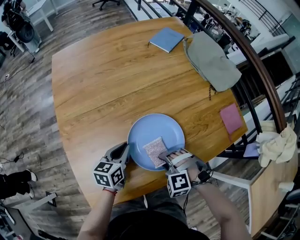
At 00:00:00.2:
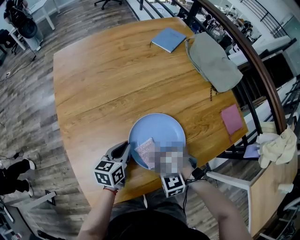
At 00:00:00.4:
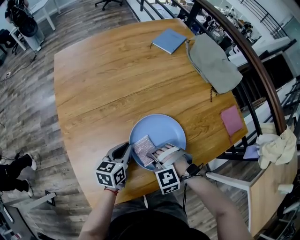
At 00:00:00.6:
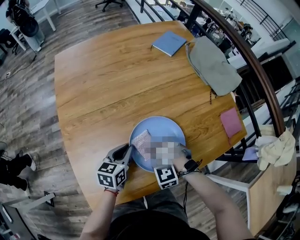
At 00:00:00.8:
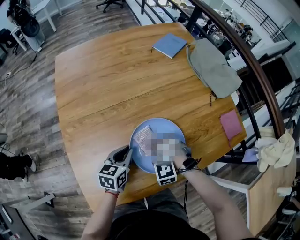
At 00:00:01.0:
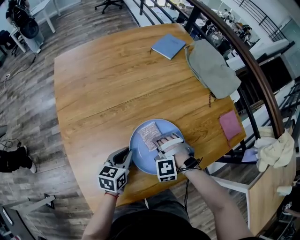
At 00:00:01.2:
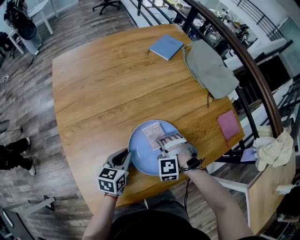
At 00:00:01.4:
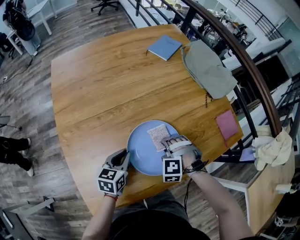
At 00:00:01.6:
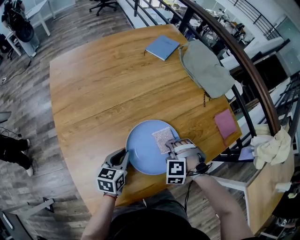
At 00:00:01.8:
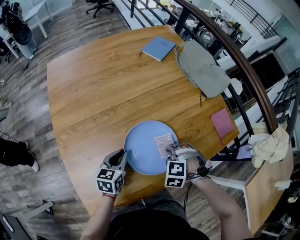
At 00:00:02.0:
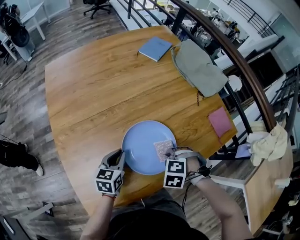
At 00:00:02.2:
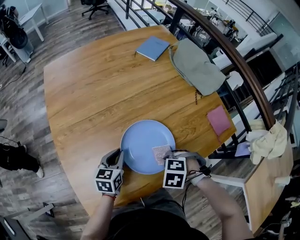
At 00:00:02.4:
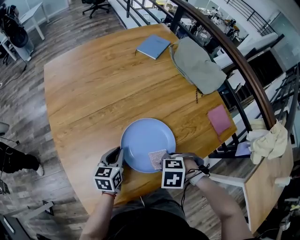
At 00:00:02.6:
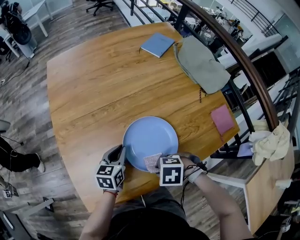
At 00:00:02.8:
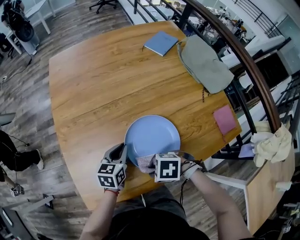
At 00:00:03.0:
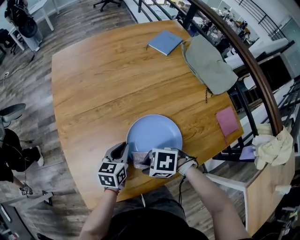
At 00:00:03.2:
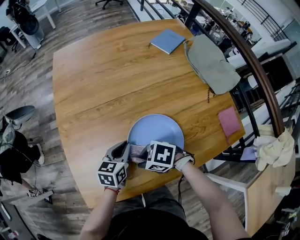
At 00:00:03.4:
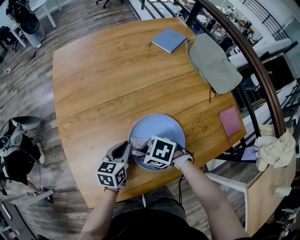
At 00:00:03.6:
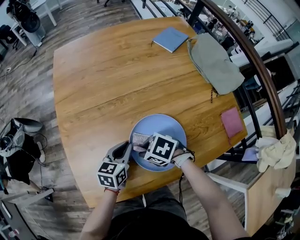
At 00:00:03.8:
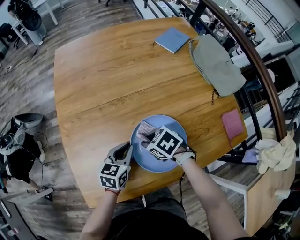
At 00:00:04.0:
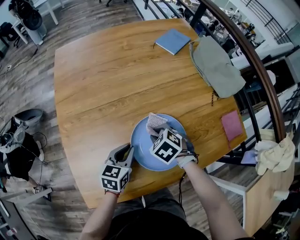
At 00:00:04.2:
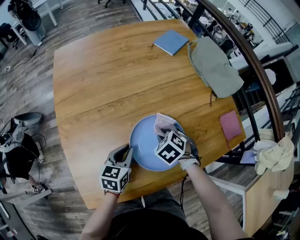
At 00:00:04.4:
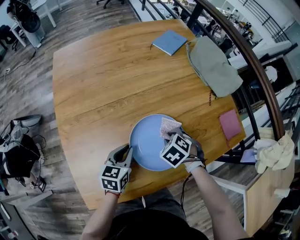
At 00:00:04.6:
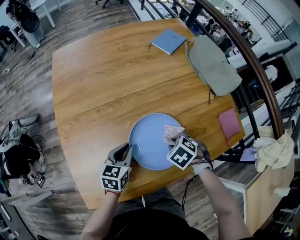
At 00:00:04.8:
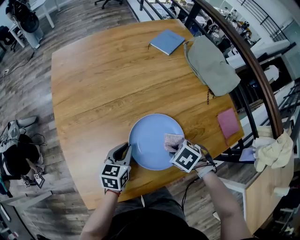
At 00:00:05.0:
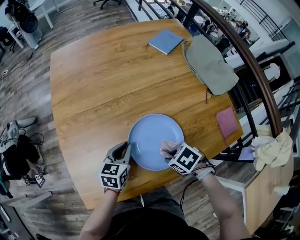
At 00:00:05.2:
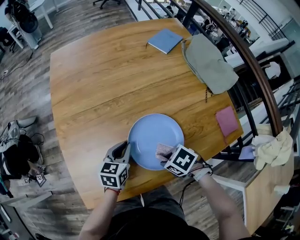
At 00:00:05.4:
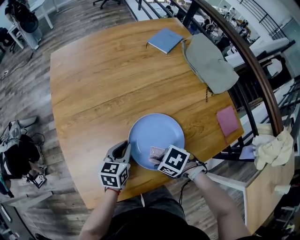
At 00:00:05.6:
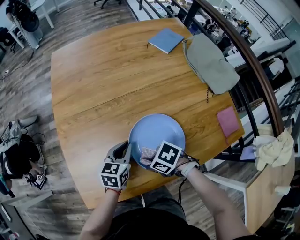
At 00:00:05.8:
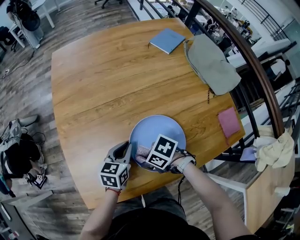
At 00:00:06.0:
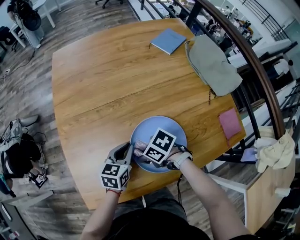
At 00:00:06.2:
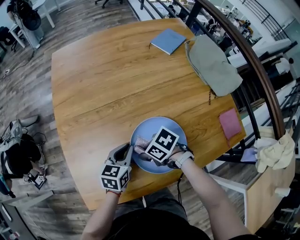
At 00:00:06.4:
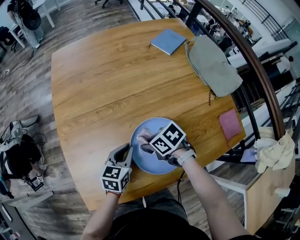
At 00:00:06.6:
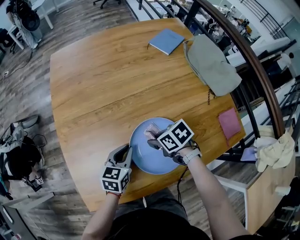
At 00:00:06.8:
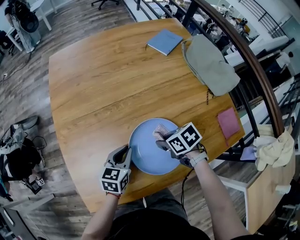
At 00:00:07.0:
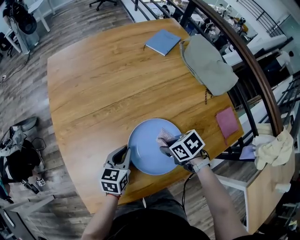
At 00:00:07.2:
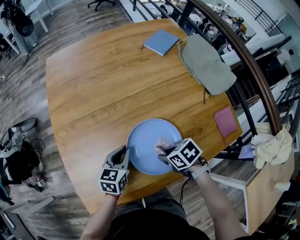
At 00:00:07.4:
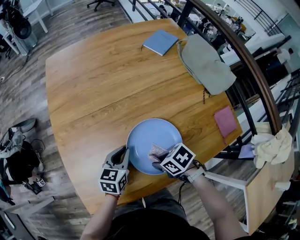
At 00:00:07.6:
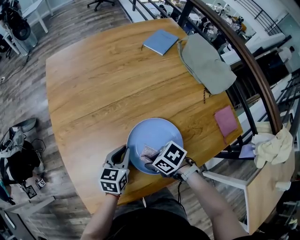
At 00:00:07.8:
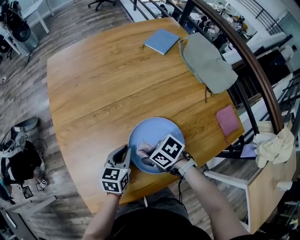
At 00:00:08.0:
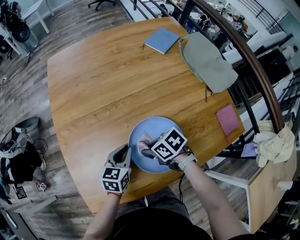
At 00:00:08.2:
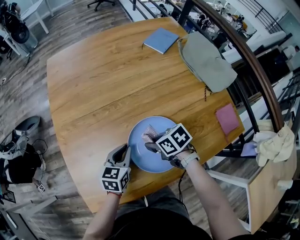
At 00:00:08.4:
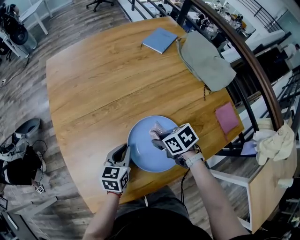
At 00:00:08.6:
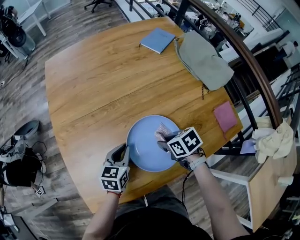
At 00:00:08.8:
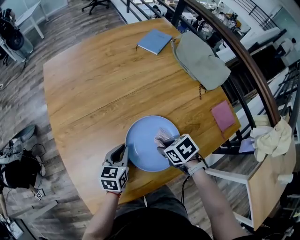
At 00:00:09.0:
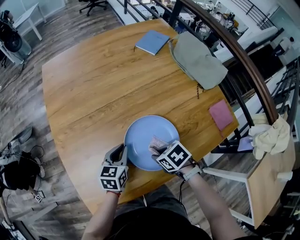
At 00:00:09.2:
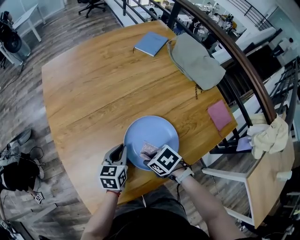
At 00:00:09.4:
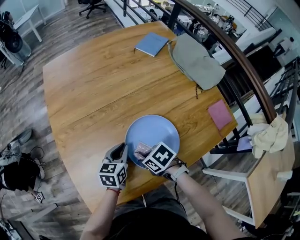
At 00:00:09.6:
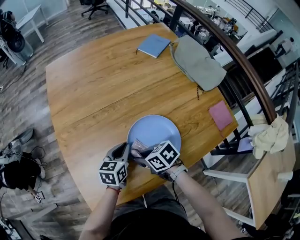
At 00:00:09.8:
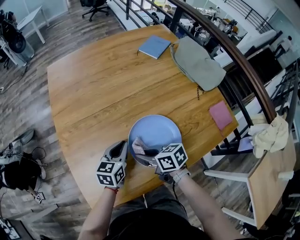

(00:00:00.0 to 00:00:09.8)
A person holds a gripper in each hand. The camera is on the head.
00:00:00.0 - 00:00:01.4: The right gripper travels forward by roughly 10 cm.
00:00:01.4 - 00:00:02.8: The right gripper changes place by about 15 cm, and rotates about 60 degrees.
00:00:02.8 - 00:00:04.2: The right gripper moves some 20 cm, and turns by roughly 50 degrees.
00:00:04.2 - 00:00:05.6: The right gripper shifts by some 15 cm, and rotates some 40 degrees.
00:00:05.6 - 00:00:07.0: The right gripper shifts by approximately 10 cm, and rotates some 30 degrees.
00:00:08.4 - 00:00:09.8: The right gripper moves to the left, approximately 10 cm, and swivels about 20 degrees.

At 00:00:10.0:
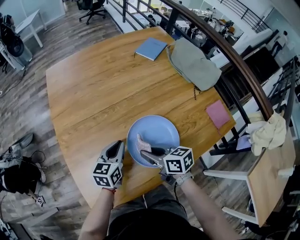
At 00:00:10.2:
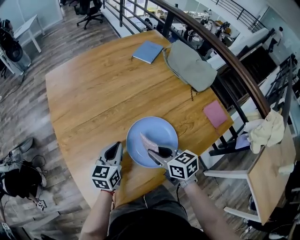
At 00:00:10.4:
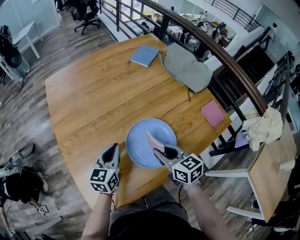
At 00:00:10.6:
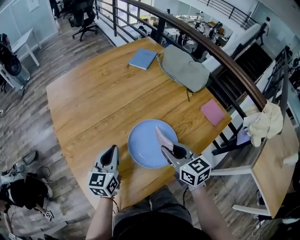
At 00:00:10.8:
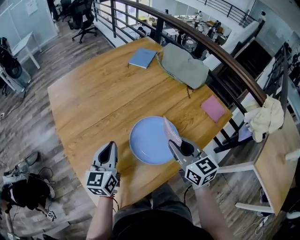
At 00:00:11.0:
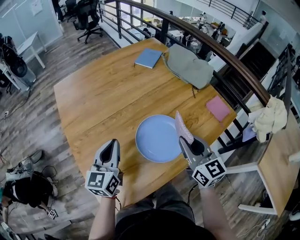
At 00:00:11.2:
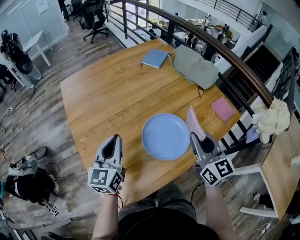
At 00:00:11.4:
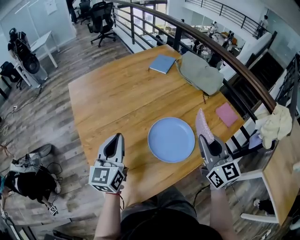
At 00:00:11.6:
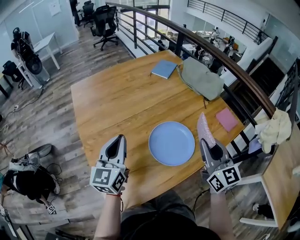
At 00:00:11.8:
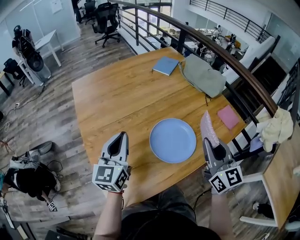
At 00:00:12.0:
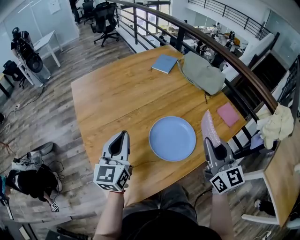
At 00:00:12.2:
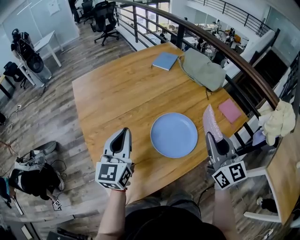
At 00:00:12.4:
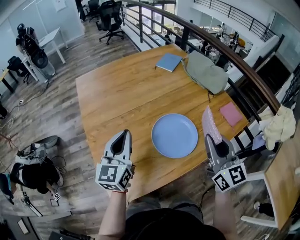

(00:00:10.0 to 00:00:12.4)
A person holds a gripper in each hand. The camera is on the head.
00:00:10.0 - 00:00:11.2: The left gripper travels upward and to the left by approximately 15 cm, and changes its angle by roughly 20 degrees; the right gripper goes roughly 20 cm upward and to the right, and turns by about 60 degrees.
00:00:11.2 - 00:00:12.4: The right gripper shifts by some 5 cm.

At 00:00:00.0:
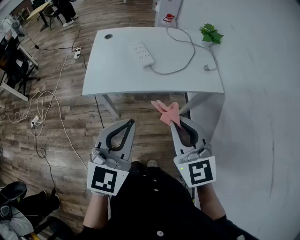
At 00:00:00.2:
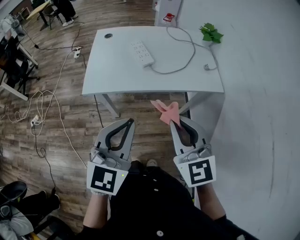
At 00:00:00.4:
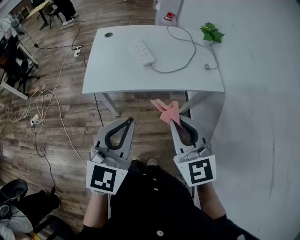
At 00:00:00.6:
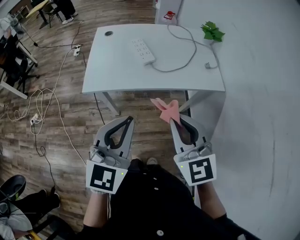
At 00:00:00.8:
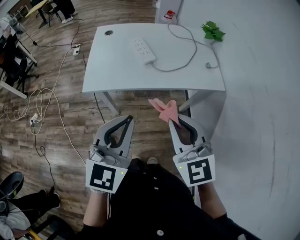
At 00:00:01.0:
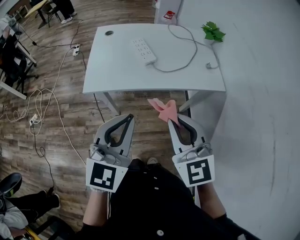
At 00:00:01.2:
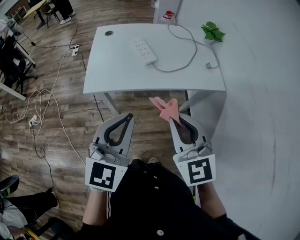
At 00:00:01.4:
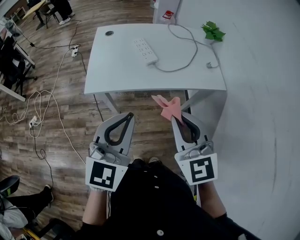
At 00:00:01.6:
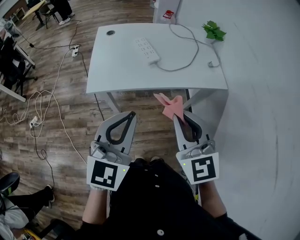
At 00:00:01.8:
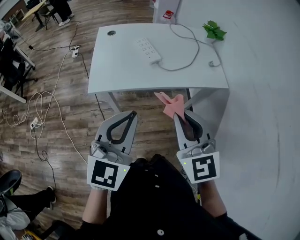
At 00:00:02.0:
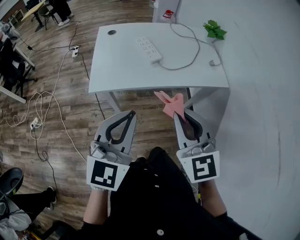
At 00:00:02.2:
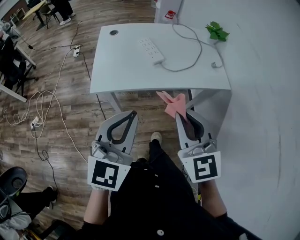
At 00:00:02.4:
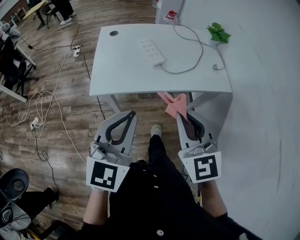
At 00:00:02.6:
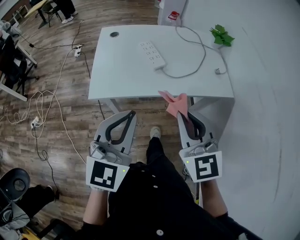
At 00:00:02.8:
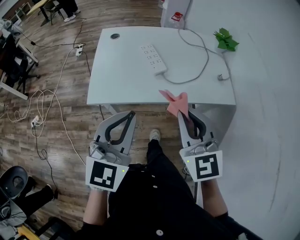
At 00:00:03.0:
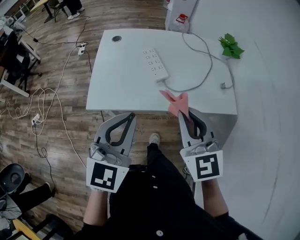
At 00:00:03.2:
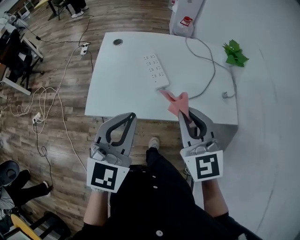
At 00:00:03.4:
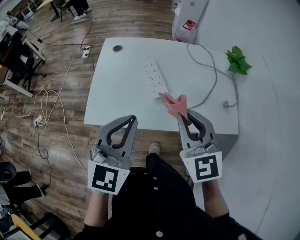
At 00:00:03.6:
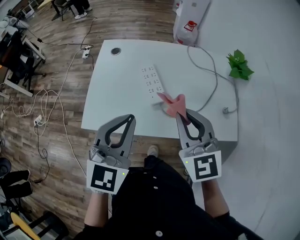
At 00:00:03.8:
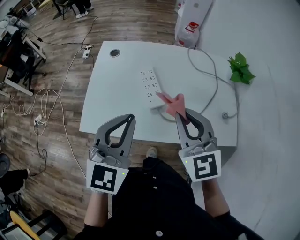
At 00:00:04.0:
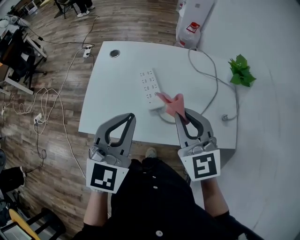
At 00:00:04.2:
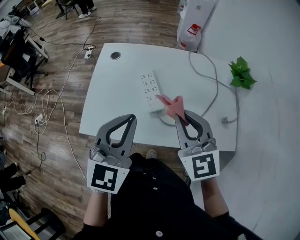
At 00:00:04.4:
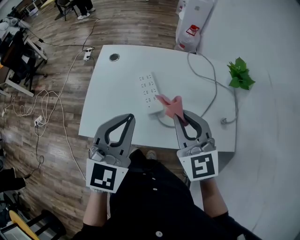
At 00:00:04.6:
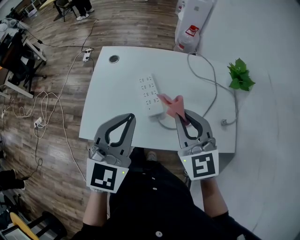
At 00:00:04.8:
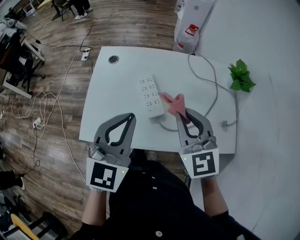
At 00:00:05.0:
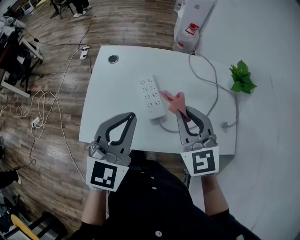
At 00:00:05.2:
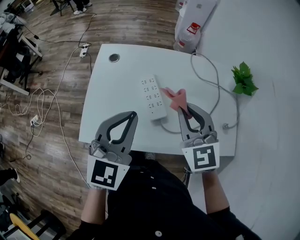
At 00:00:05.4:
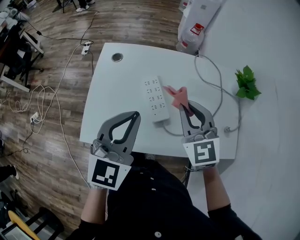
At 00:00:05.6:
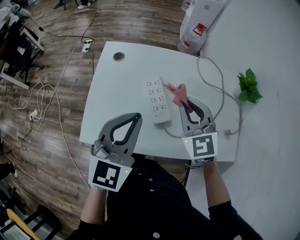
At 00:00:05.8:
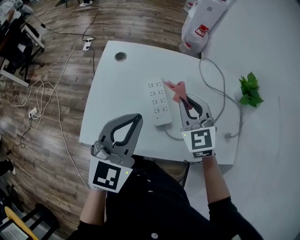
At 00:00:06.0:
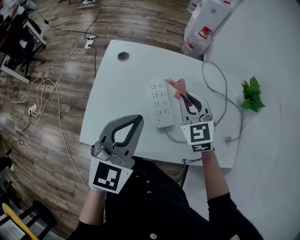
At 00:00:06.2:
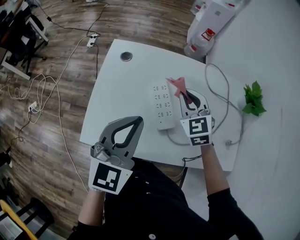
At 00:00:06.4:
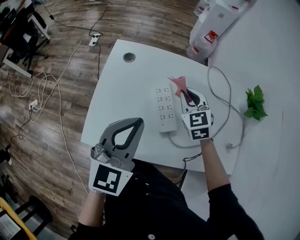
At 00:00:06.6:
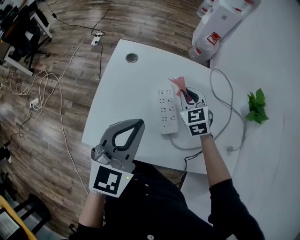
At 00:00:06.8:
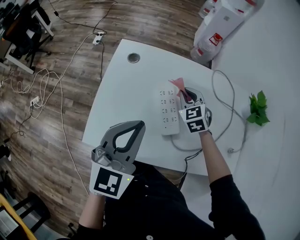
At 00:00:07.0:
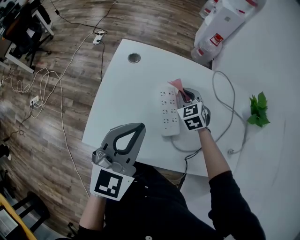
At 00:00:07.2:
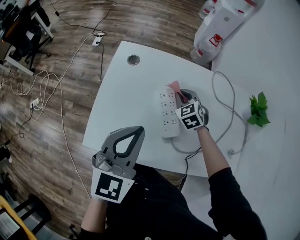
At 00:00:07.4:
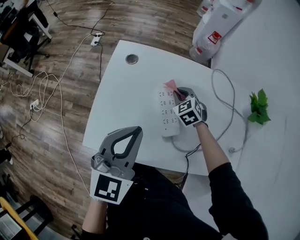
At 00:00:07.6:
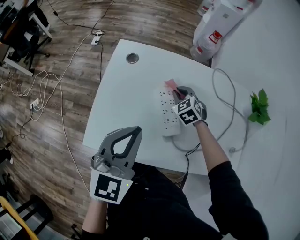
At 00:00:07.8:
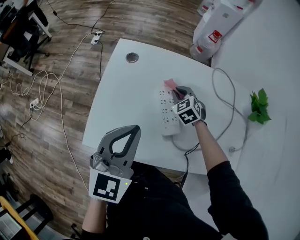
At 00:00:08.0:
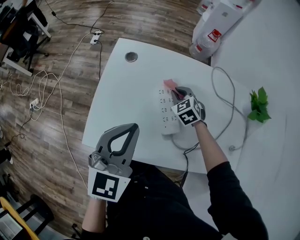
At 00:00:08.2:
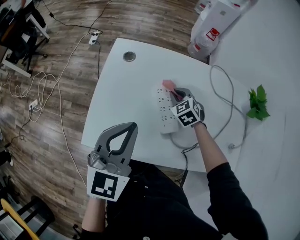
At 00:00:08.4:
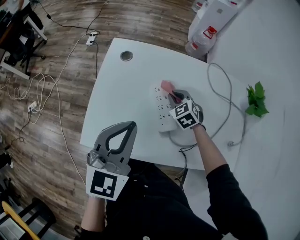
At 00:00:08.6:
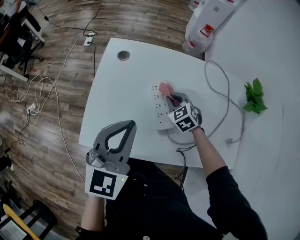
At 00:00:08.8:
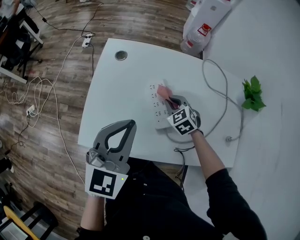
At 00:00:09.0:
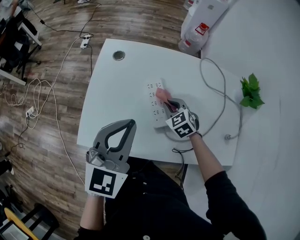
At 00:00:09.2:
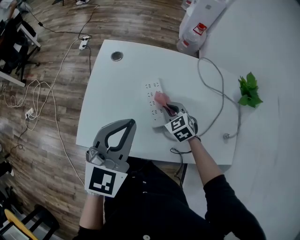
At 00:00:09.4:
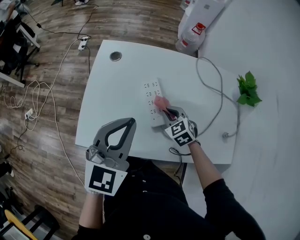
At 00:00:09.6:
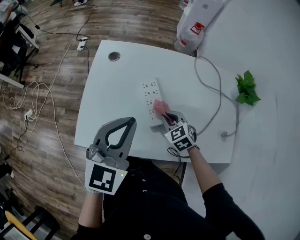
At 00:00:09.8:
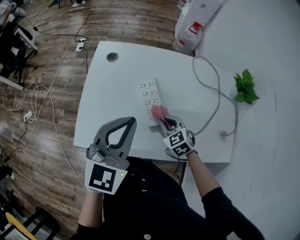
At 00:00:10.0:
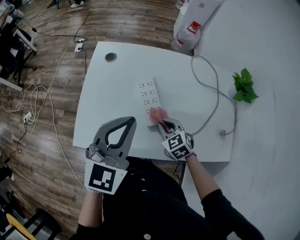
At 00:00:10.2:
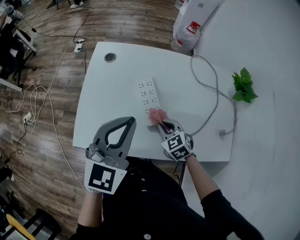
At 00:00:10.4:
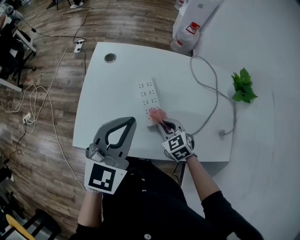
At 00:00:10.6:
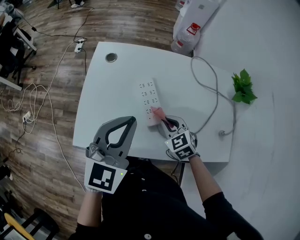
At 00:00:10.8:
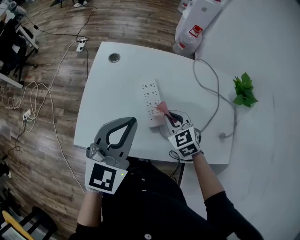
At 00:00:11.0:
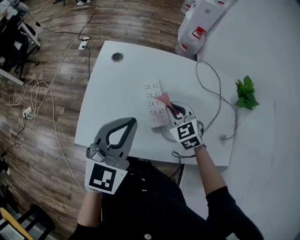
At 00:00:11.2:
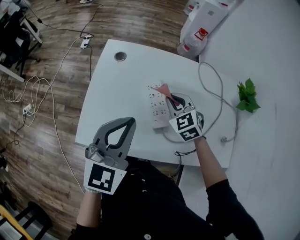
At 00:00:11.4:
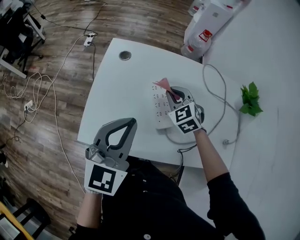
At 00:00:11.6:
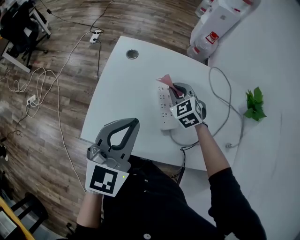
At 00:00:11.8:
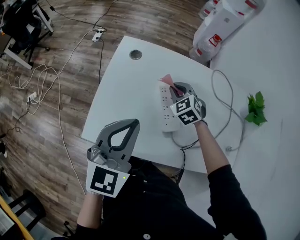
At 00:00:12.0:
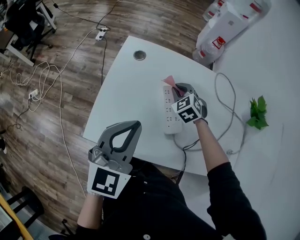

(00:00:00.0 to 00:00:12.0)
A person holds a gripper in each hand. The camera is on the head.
00:00:00.0 - 00:00:01.6: The grippers both shift to the left by about 5 cm.
00:00:01.6 - 00:00:03.0: The grippers both shift forward by some 15 cm.
00:00:03.0 - 00:00:04.4: The grippers both shift forward by roughly 20 cm.
00:00:04.4 - 00:00:06.0: The right gripper is displaced forward and downward by approximately 20 cm. The left gripper goes roughly 10 cm forward.
00:00:06.0 - 00:00:07.6: The right gripper moves downward and forward, about 20 cm, and turns by some 20 degrees.
00:00:07.6 - 00:00:09.0: The right gripper goes roughly 10 cm backward.
00:00:09.0 - 00:00:10.4: The right gripper travels backward by roughly 10 cm.
00:00:10.4 - 00:00:12.0: The left gripper travels to the left by roughly 10 cm. Meanwhile the right gripper moves forward and to the left, some 20 cm.
